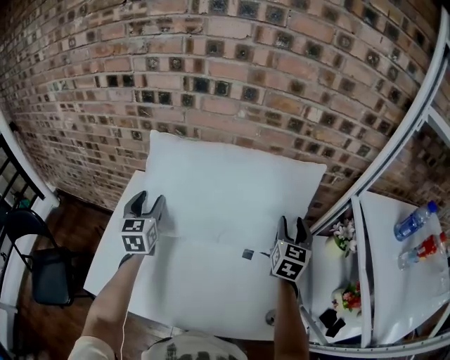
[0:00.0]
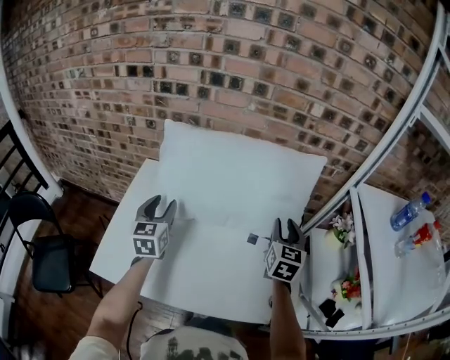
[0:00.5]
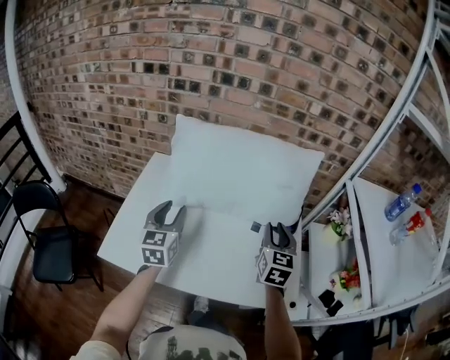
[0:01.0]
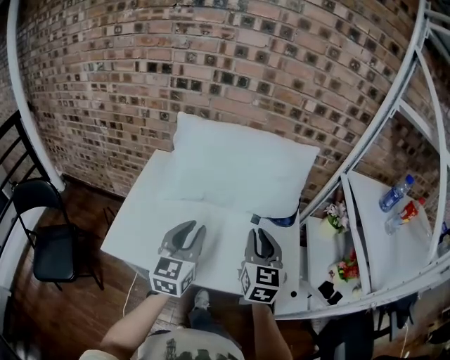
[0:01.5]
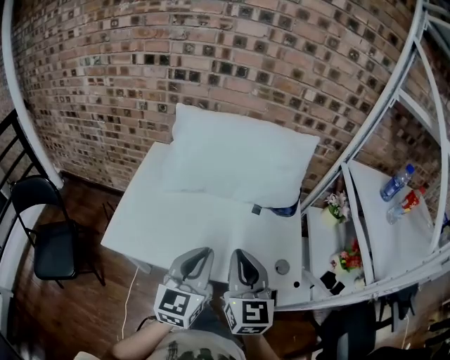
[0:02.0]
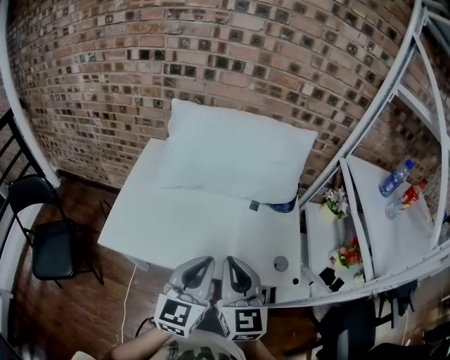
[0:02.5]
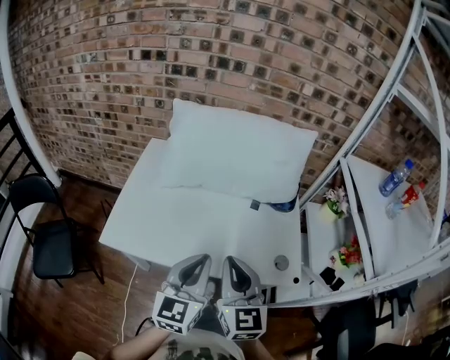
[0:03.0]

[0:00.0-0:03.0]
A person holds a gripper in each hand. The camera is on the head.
0:00.0 to 0:01.5: The left gripper shifts some 30 cm backward and to the right, while the right gripper travels backward and to the left by approximately 30 cm, and closes.
0:01.5 to 0:03.0: The left gripper moves backward, about 10 cm, while the right gripper travels backward and to the left by approximately 15 cm.

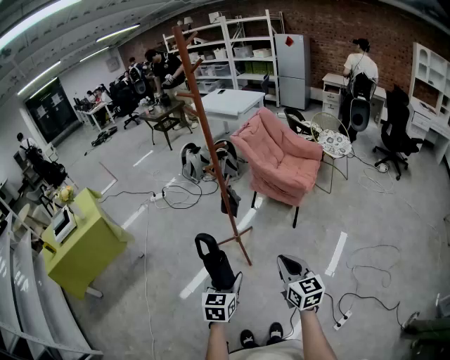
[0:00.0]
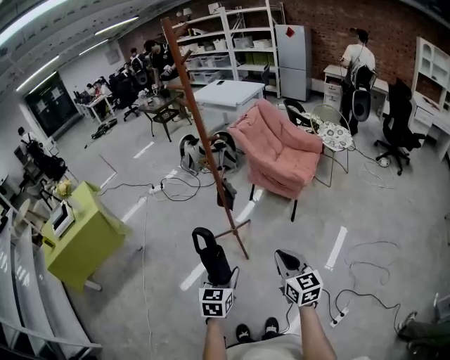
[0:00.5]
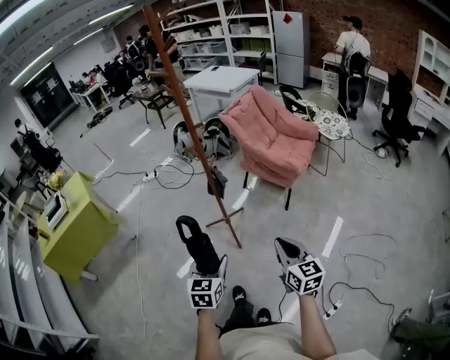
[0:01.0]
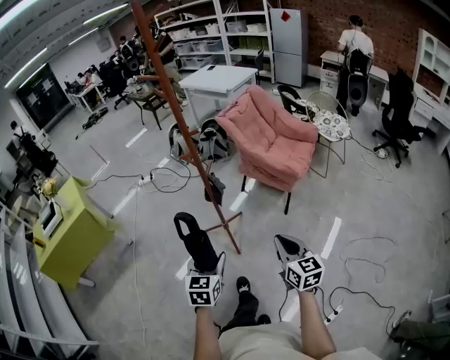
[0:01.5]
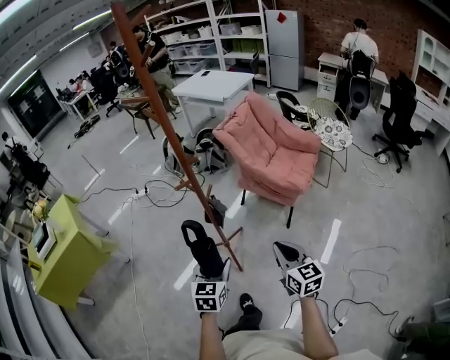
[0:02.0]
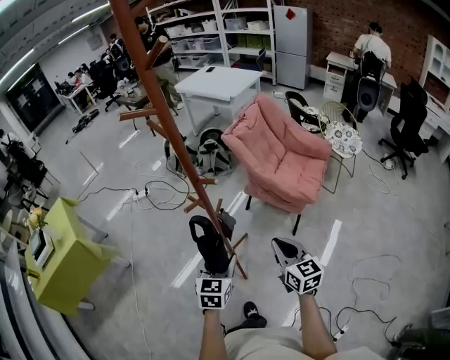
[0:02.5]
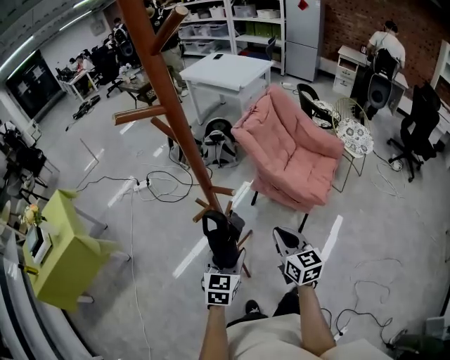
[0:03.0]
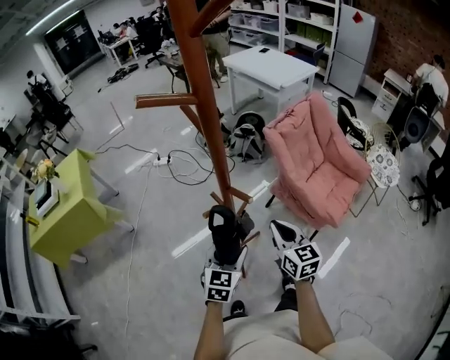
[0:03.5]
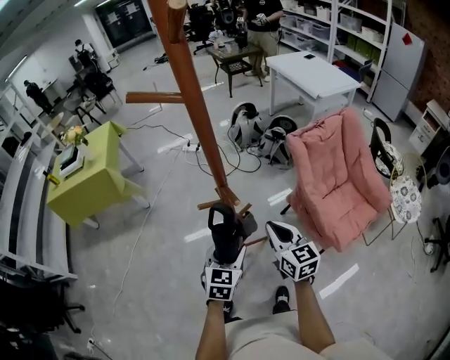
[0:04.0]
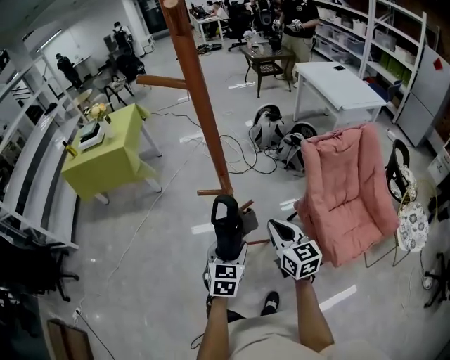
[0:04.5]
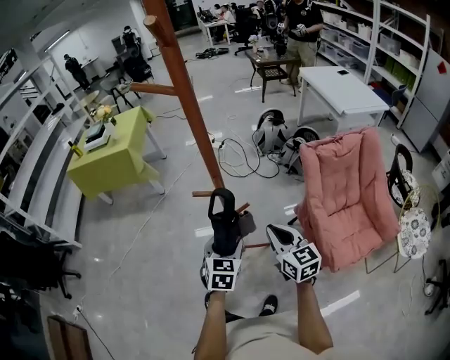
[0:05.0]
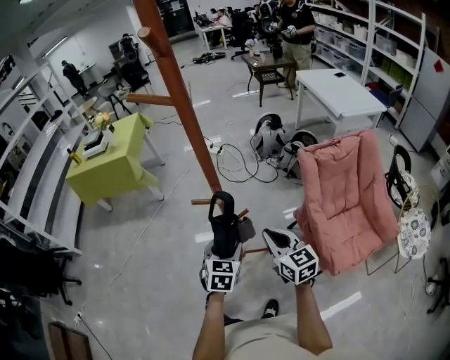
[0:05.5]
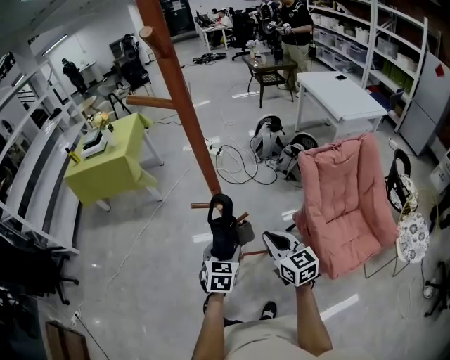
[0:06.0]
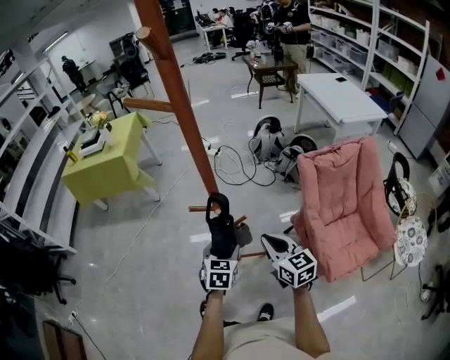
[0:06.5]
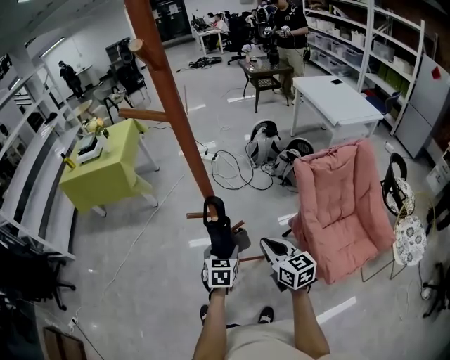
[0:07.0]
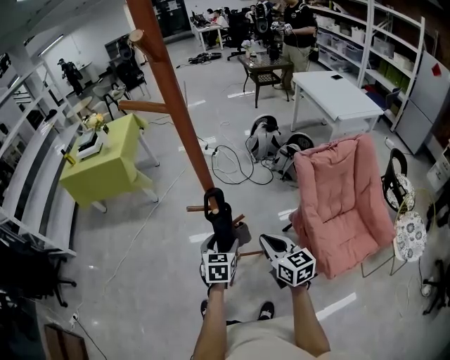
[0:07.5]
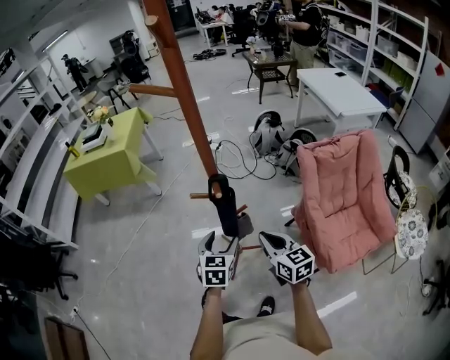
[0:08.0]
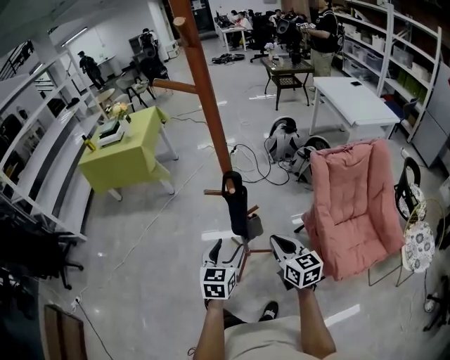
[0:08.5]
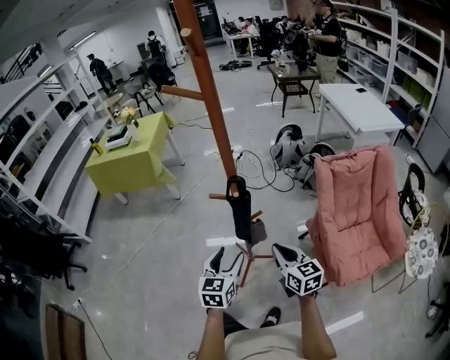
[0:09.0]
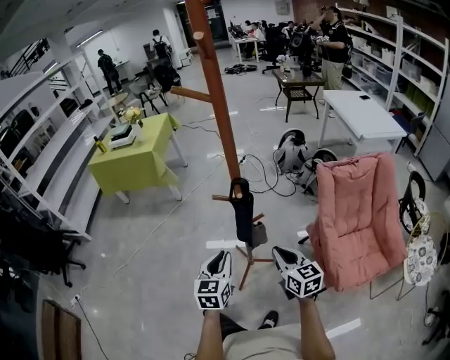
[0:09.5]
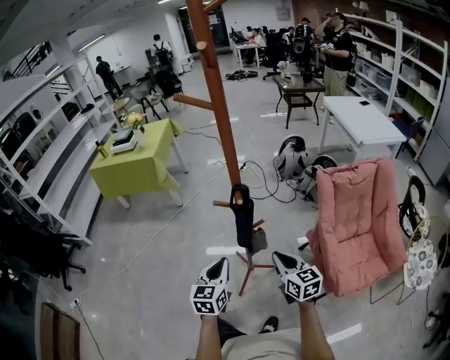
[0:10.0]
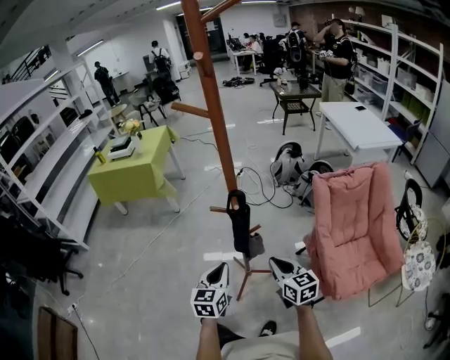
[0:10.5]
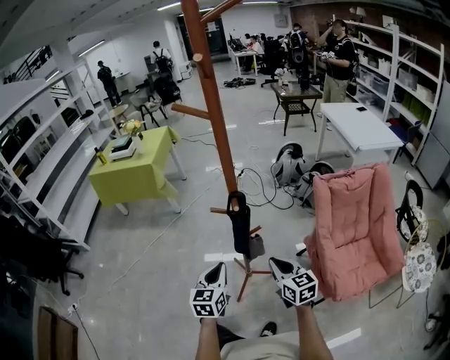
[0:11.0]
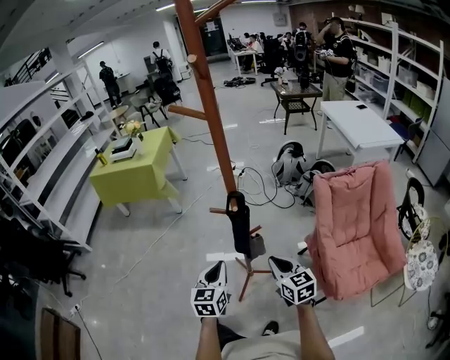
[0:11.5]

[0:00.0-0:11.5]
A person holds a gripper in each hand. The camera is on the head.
0:00.0 to 0:02.0: The grippers both shift forward by approximately 20 cm.
0:02.0 to 0:04.0: The left gripper changes place by approximately 20 cm, and rotates about 20 degrees. Meanwhile the right gripper moves about 30 cm, and turns by about 30 degrees.
0:04.0 to 0:06.0: The grippers stay close to where they were, moving slightly.
0:06.0 to 0:07.5: There are only small adjustments of the grippers.
0:07.5 to 0:09.5: The left gripper goes approximately 15 cm backward, to the left and upward, and closes its fingers, while the right gripper moves approximately 5 cm.
0:09.5 to 0:11.5: The grippers make only small movements.

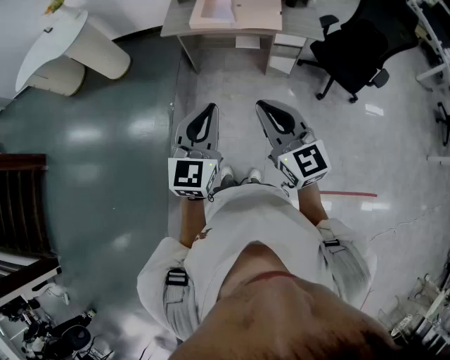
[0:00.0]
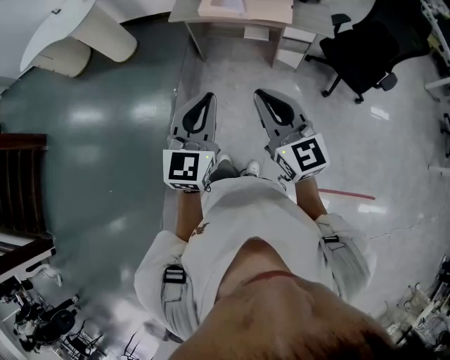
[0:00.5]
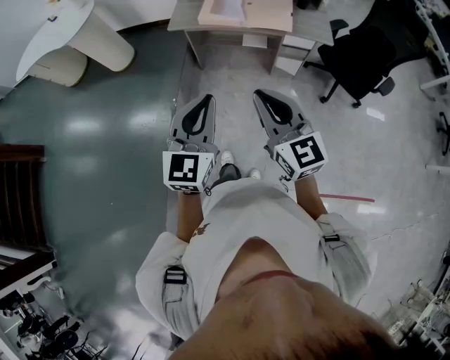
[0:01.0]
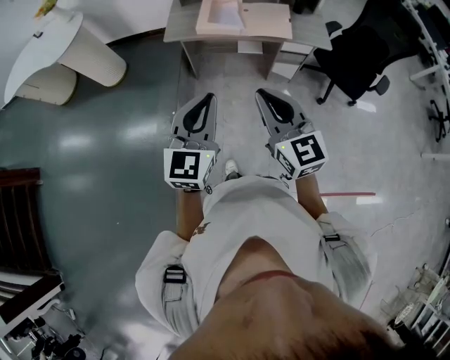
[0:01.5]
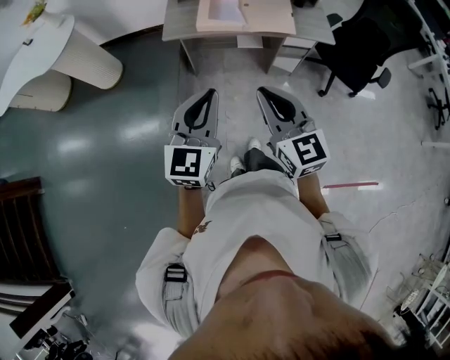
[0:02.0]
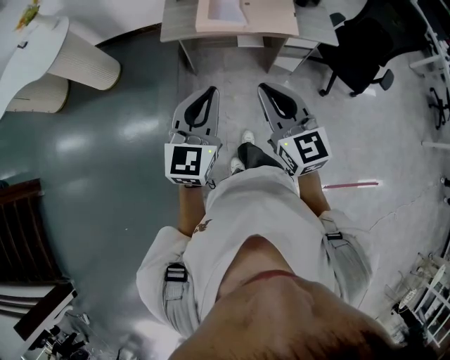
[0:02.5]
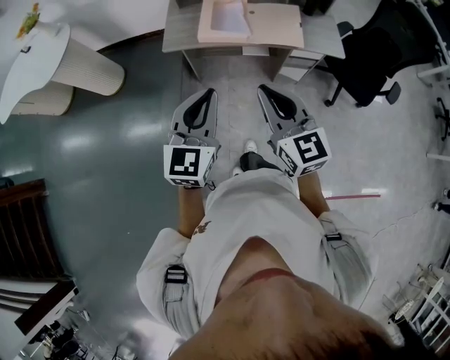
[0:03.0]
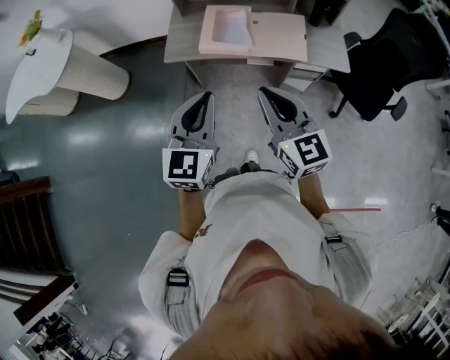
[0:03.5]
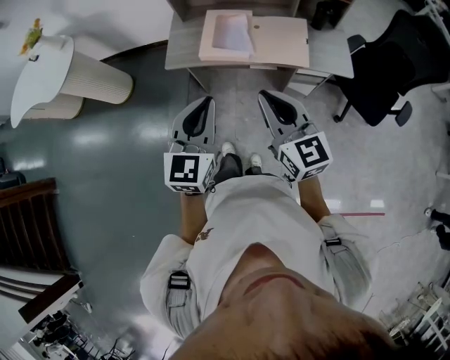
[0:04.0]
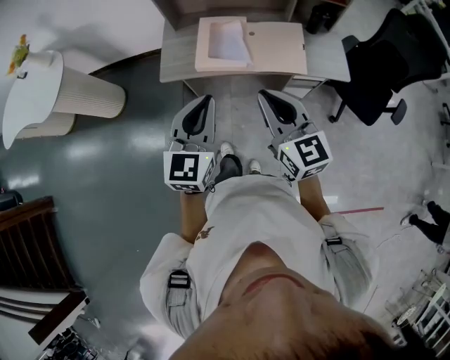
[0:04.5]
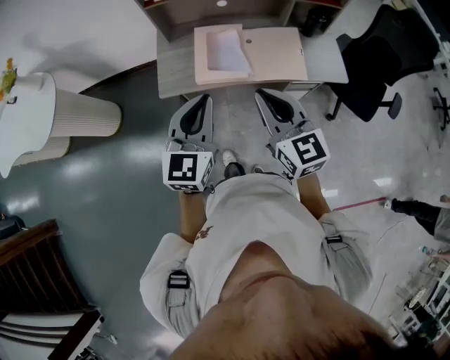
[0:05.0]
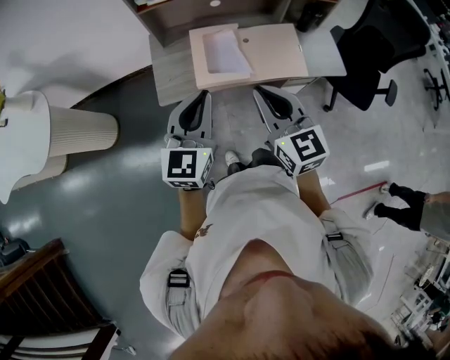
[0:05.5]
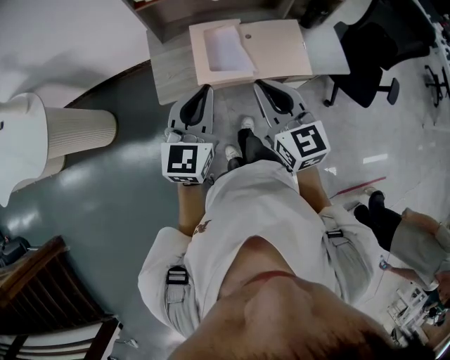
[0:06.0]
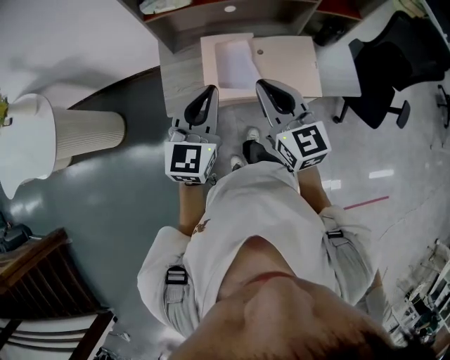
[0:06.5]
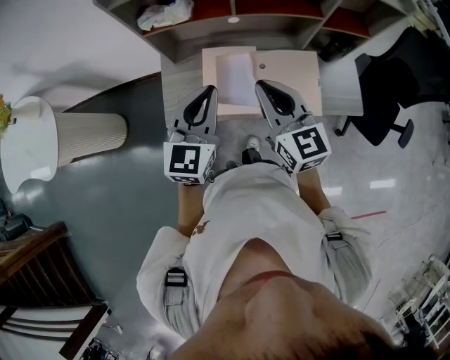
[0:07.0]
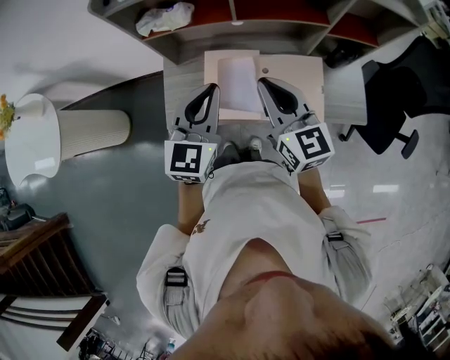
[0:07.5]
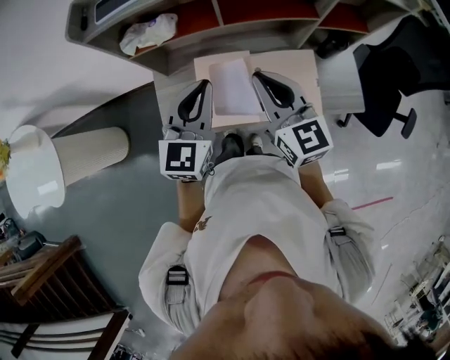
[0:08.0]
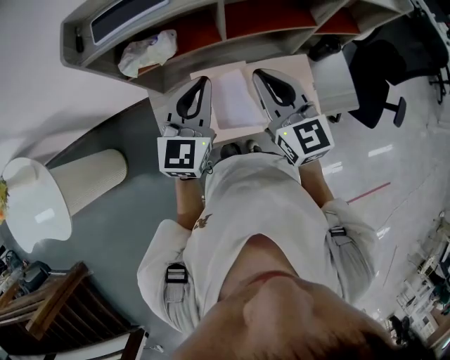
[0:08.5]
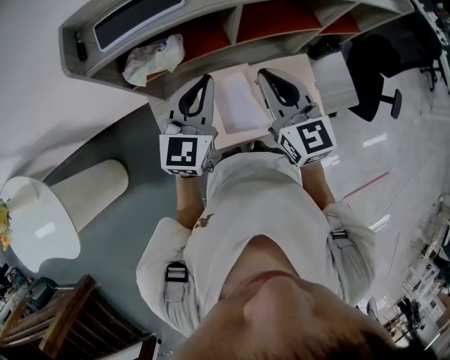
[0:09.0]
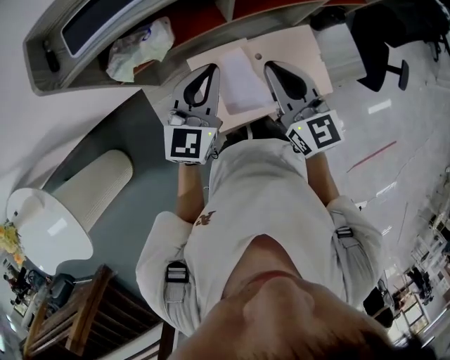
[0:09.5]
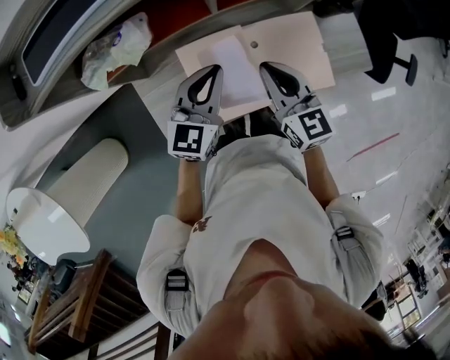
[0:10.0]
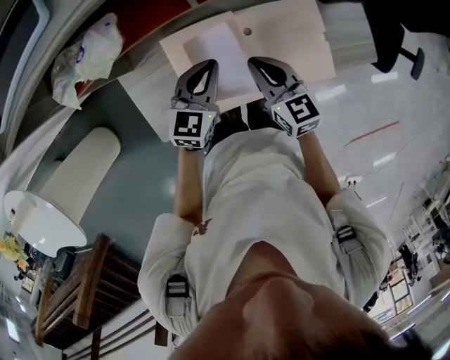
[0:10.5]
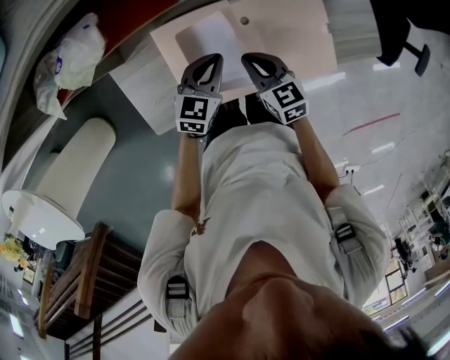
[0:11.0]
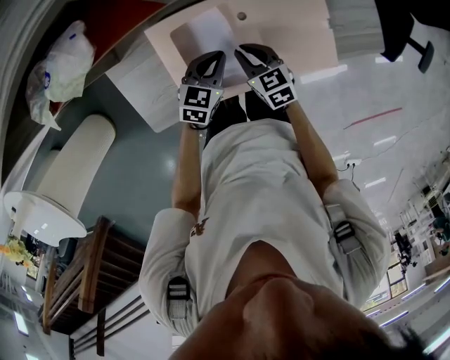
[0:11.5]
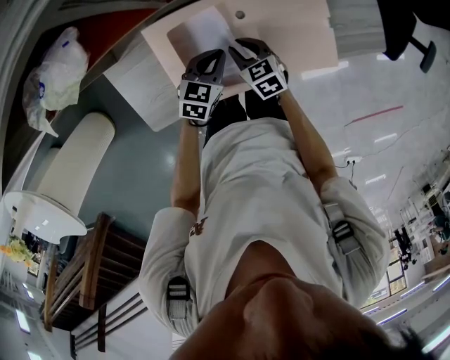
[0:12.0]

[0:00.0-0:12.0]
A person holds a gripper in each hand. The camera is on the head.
0:00.0 to 0:02.0: Both grippers travel together forward and to the left, approximately 20 cm.
0:02.0 to 0:04.0: The right gripper is displaced forward and to the right by about 25 cm. Meanwhile the left gripper moves forward, some 20 cm.
0:04.0 to 0:06.0: Both grippers move forward and to the left, some 25 cm.
0:06.0 to 0:08.0: Both grippers travel together forward, some 25 cm.
0:08.0 to 0:10.0: The two grippers go approximately 15 cm downward and forward. The left gripper swivels approximately 20 degrees.
0:10.0 to 0:12.0: Both grippers move downward, about 25 cm. The left gripper turns by roughly 30 degrees; the right gripper angles its fingers downward, by some 30 degrees, and opens up.
